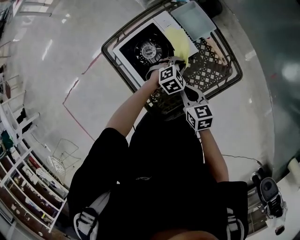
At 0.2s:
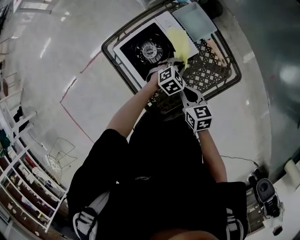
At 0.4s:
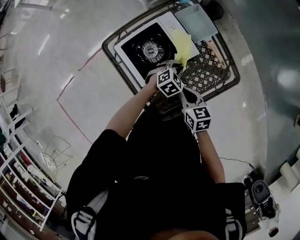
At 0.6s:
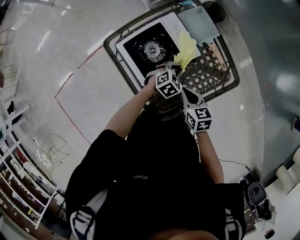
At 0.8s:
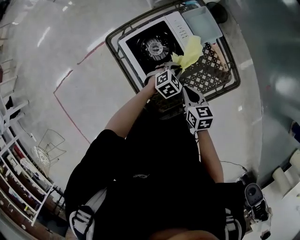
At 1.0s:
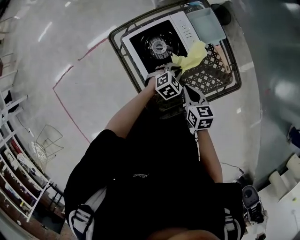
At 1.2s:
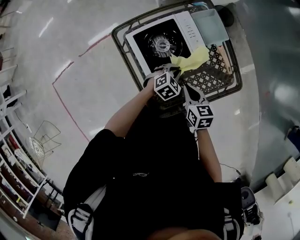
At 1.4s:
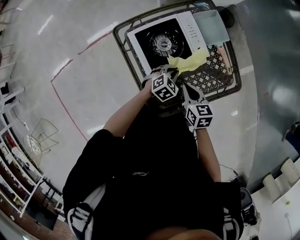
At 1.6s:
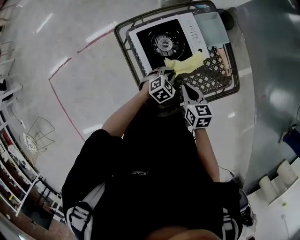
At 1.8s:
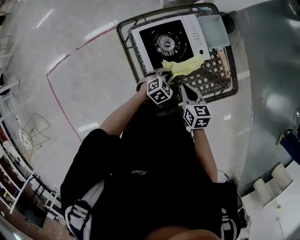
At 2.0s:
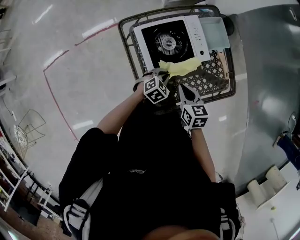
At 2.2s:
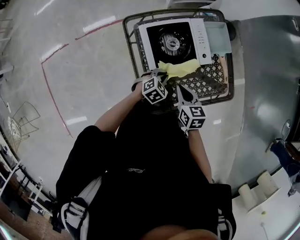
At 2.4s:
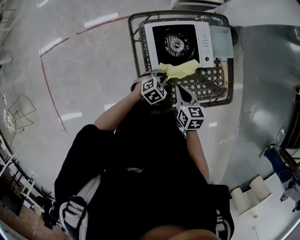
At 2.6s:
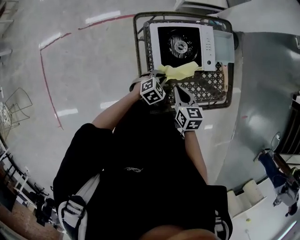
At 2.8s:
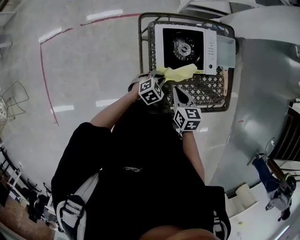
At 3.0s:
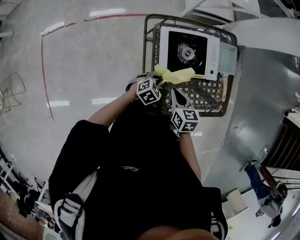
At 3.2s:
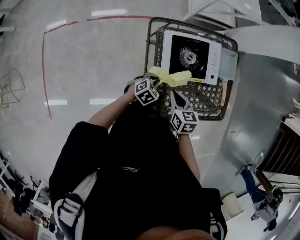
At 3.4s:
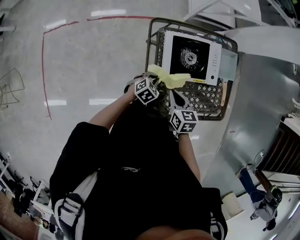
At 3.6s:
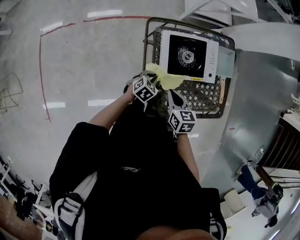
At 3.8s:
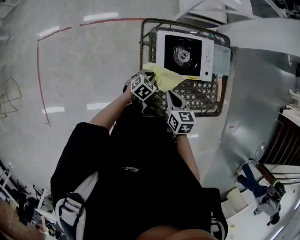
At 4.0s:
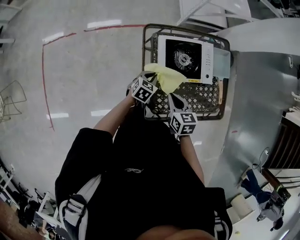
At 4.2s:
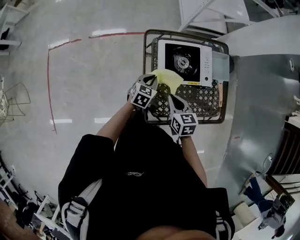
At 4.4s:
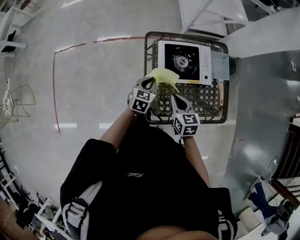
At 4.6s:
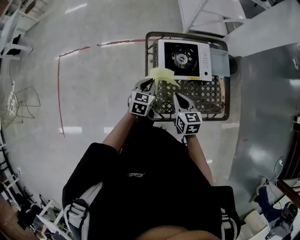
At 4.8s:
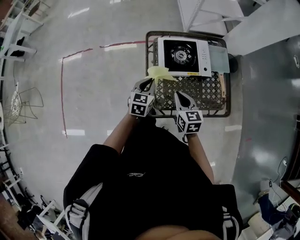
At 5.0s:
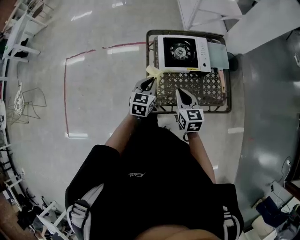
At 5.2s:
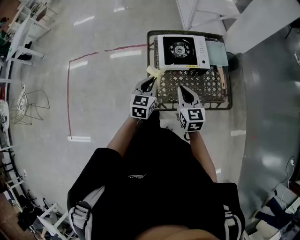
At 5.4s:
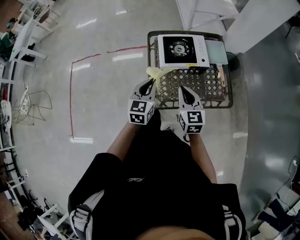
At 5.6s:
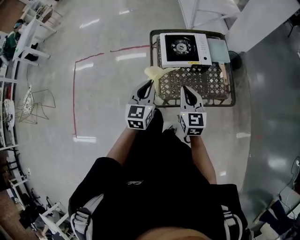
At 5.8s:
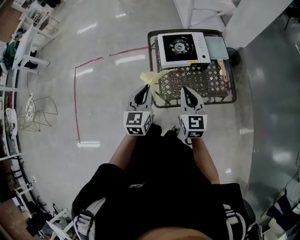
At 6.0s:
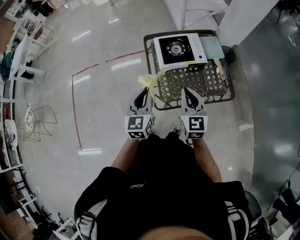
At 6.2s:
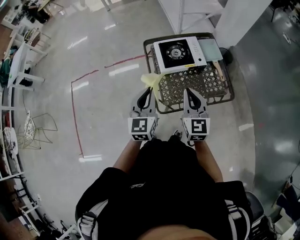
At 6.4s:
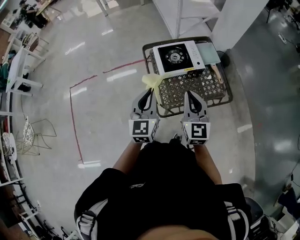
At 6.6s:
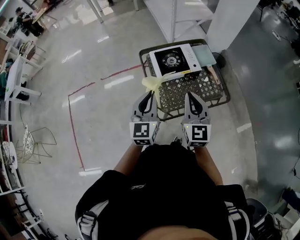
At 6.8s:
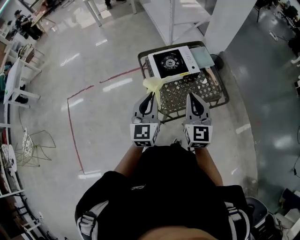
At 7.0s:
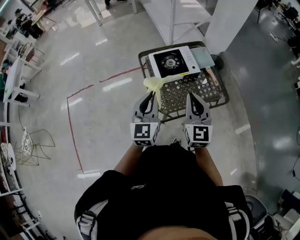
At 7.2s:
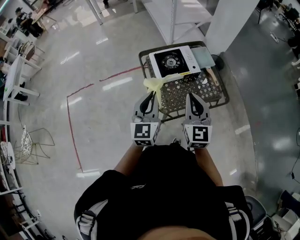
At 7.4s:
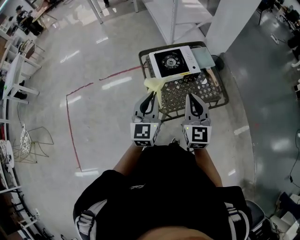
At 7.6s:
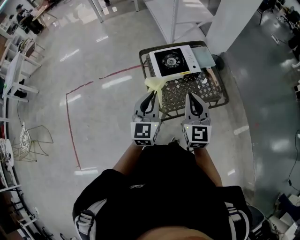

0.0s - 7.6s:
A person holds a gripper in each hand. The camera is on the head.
0.0s - 1.6s: The left gripper goes approximately 10 cm to the left and backward.
1.6s - 3.0s: The right gripper shifts roughly 10 cm to the left. The left gripper is displaced to the left and backward by about 10 cm.
3.0s - 4.6s: The left gripper heads upward and to the left, covering some 15 cm, and turns by approximately 40 degrees; the right gripper travels upward by some 5 cm.
4.6s - 6.0s: Both grippers travel together upward and backward, some 20 cm. The left gripper turns by about 20 degrees, while the right gripper turns by approximately 30 degrees.
6.0s - 7.6s: Both grippers travel together upward, about 10 cm.

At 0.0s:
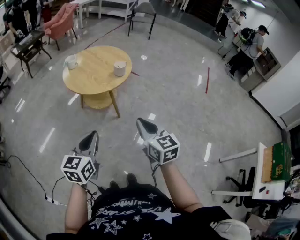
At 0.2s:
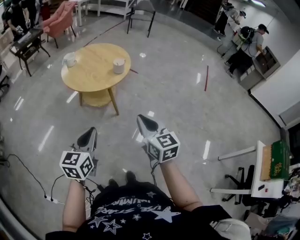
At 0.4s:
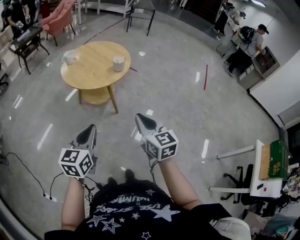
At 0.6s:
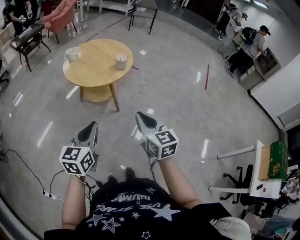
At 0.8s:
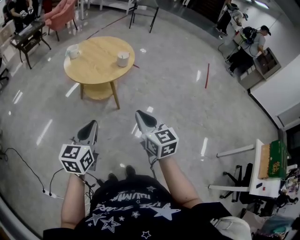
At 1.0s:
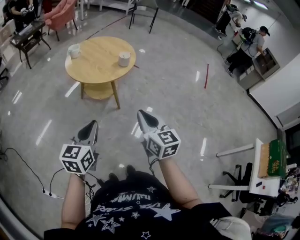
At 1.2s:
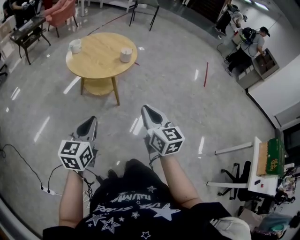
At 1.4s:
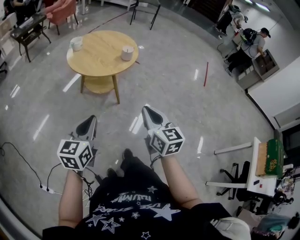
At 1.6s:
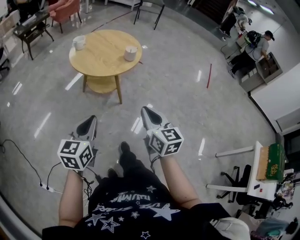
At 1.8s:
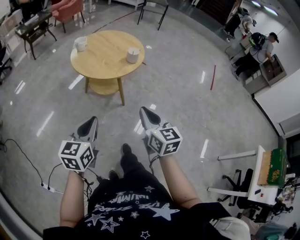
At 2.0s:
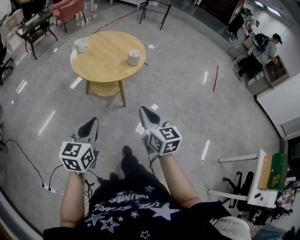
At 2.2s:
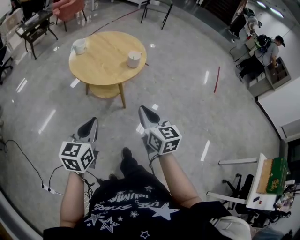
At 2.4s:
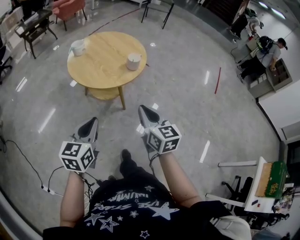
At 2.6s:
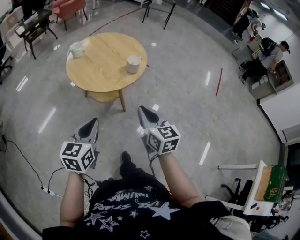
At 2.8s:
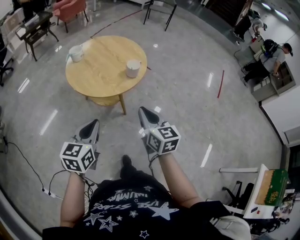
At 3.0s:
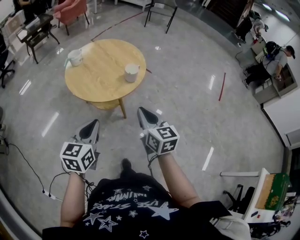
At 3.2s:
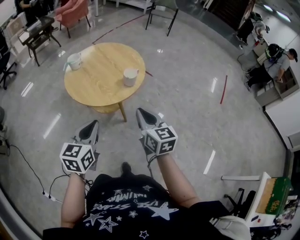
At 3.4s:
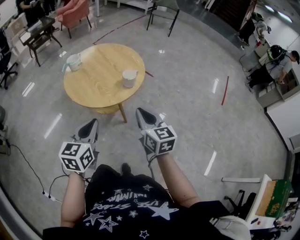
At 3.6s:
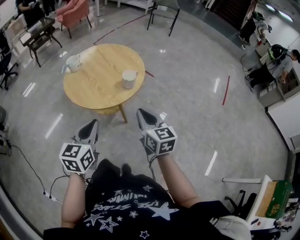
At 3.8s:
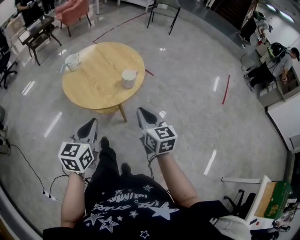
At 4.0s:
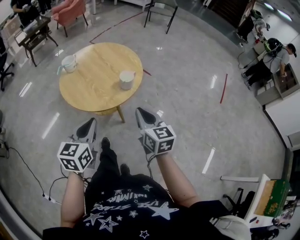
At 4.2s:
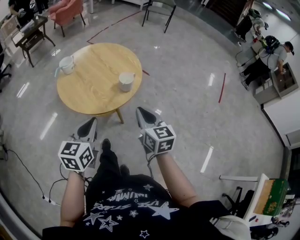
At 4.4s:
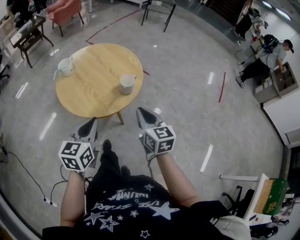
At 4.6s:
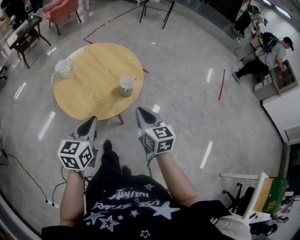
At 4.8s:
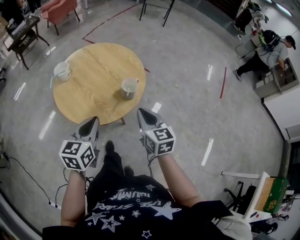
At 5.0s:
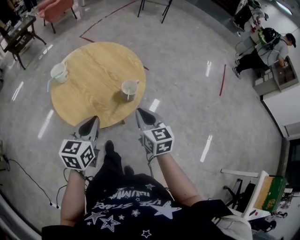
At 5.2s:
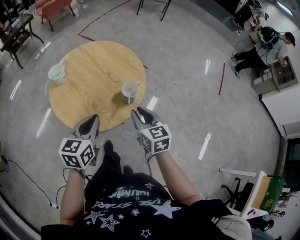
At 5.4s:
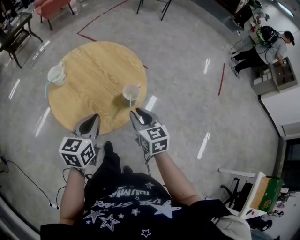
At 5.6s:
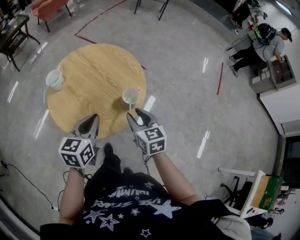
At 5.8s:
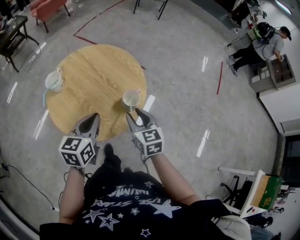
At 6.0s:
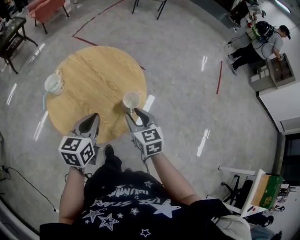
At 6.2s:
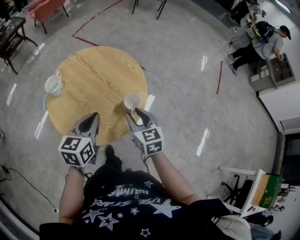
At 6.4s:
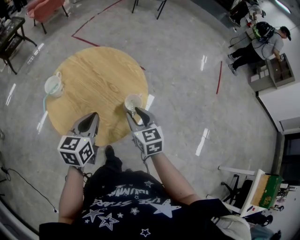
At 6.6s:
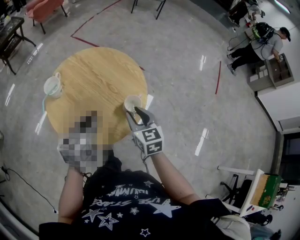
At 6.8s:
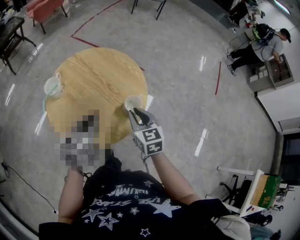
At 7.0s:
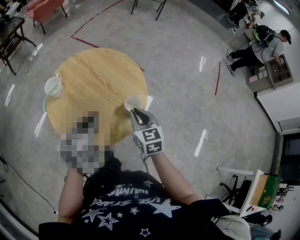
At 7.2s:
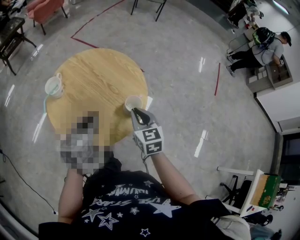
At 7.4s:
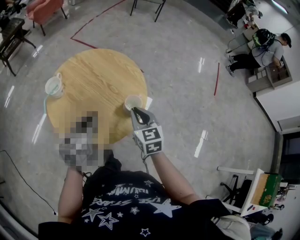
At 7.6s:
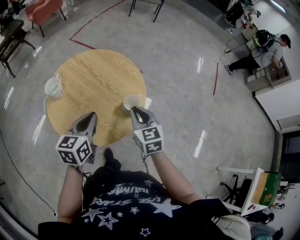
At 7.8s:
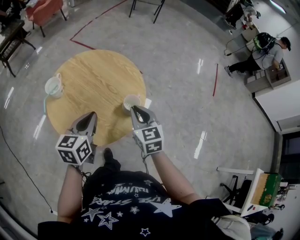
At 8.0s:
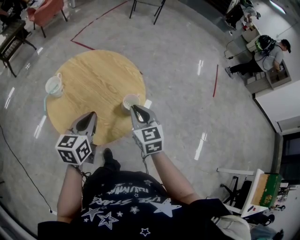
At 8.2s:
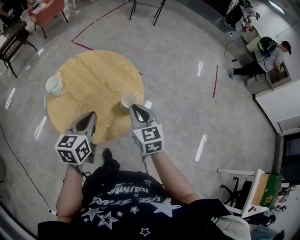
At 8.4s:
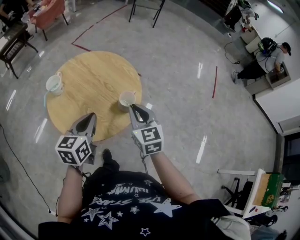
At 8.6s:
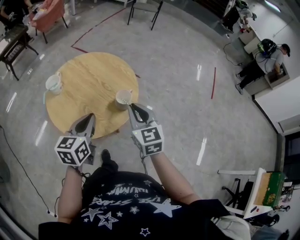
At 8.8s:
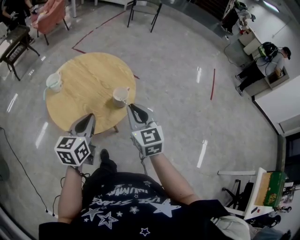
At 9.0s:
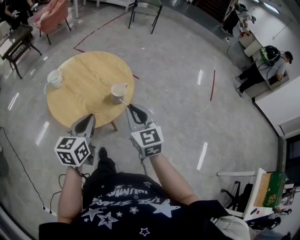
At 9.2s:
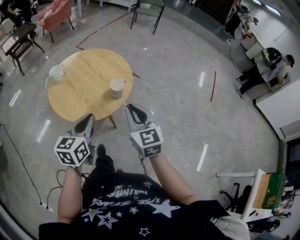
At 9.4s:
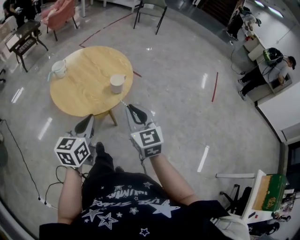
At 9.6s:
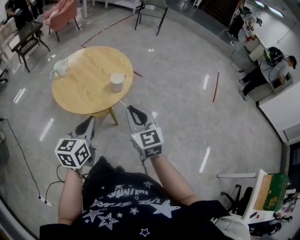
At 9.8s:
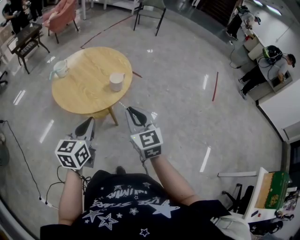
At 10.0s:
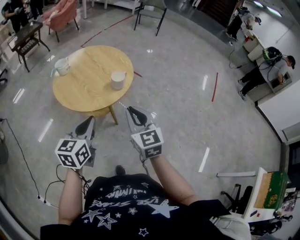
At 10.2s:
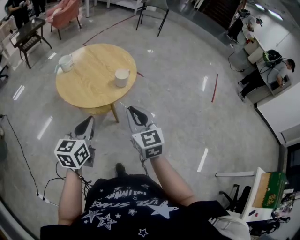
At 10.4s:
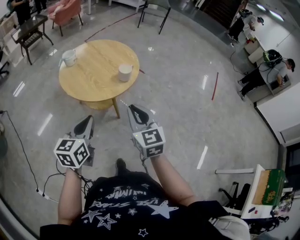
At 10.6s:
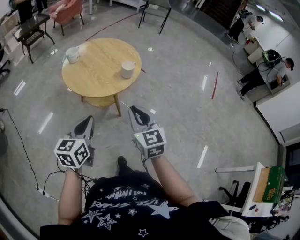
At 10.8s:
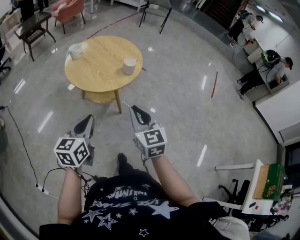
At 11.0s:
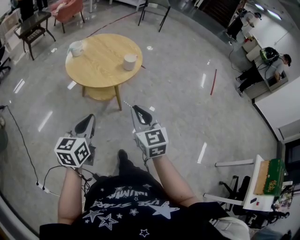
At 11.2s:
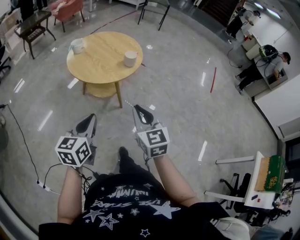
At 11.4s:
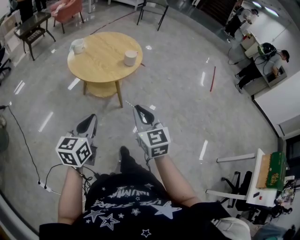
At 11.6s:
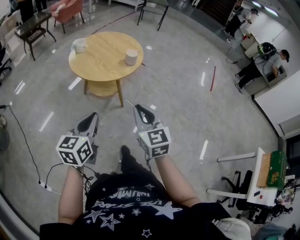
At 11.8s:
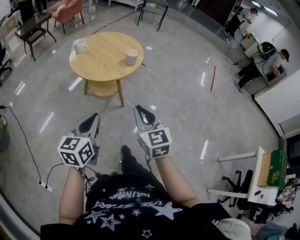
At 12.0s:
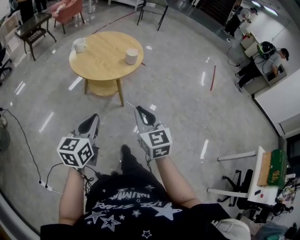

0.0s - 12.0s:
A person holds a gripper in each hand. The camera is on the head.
0.0s - 1.6s: The right gripper ends up approximately 5 cm from where it was. The left gripper travels to the left by some 5 cm.
1.6s - 3.0s: The two grippers go some 20 cm forward.
3.0s - 4.4s: The grippers both shift forward by about 10 cm.
4.4s - 6.0s: The left gripper travels forward by roughly 20 cm. Meanwhile the right gripper shifts approximately 20 cm forward, downward and to the left, and opens its fingers.
6.0s - 7.6s: The right gripper closes.
7.6s - 9.0s: The left gripper heads backward and to the right, covering roughly 15 cm, while the right gripper is displaced backward, upward and to the right by some 15 cm.
9.0s - 10.4s: Both grippers travel together backward, approximately 15 cm.
10.4s - 12.0s: The grippers both shift backward by roughly 15 cm.

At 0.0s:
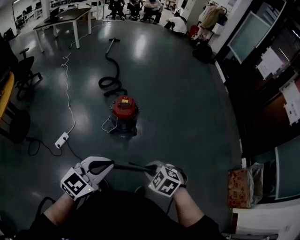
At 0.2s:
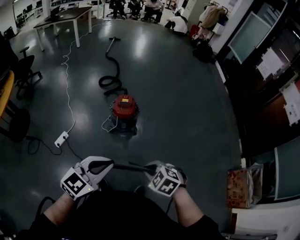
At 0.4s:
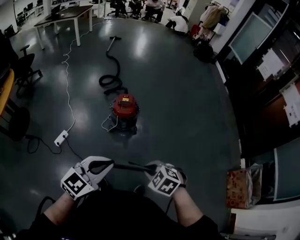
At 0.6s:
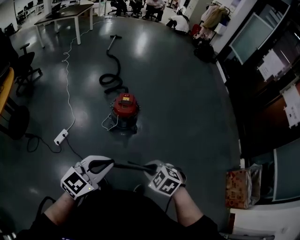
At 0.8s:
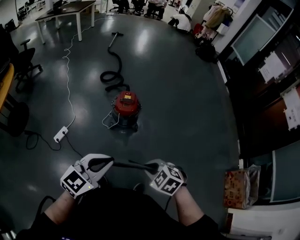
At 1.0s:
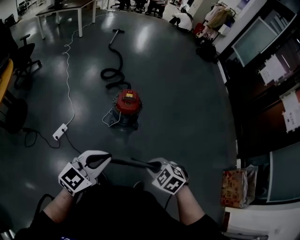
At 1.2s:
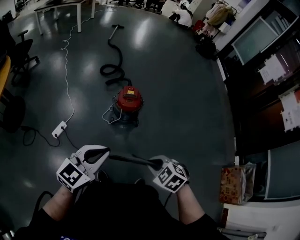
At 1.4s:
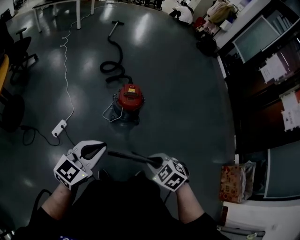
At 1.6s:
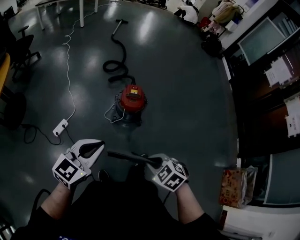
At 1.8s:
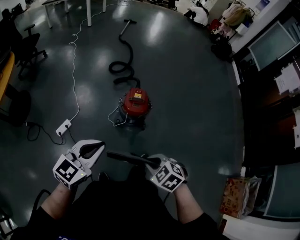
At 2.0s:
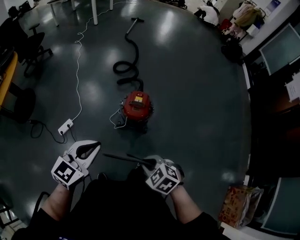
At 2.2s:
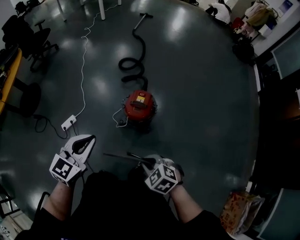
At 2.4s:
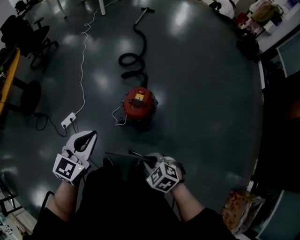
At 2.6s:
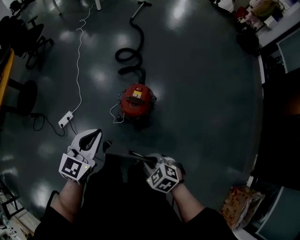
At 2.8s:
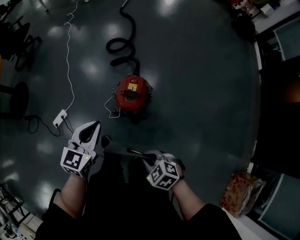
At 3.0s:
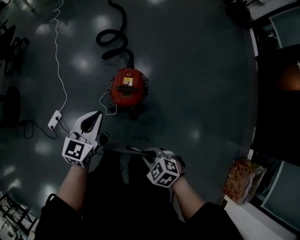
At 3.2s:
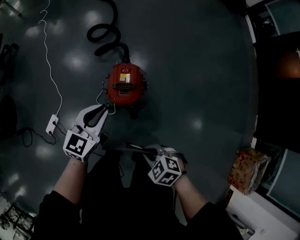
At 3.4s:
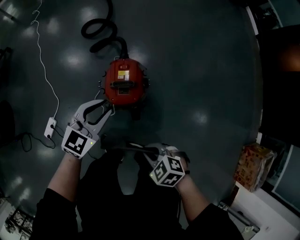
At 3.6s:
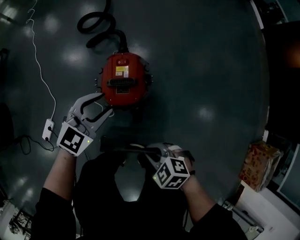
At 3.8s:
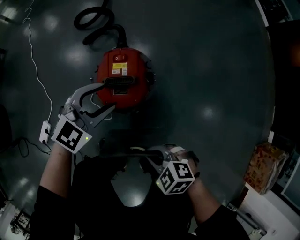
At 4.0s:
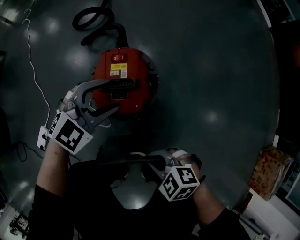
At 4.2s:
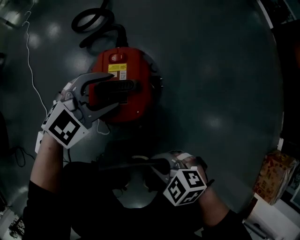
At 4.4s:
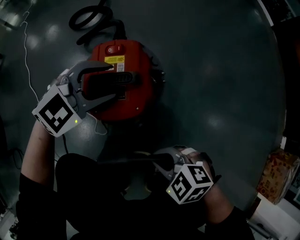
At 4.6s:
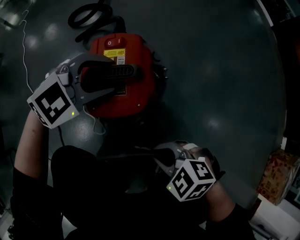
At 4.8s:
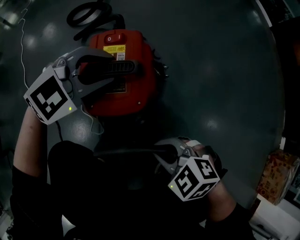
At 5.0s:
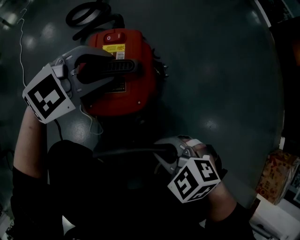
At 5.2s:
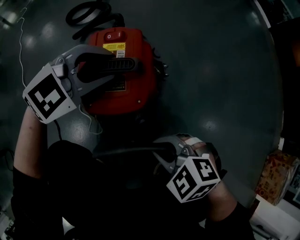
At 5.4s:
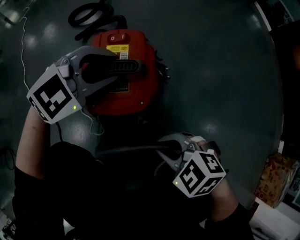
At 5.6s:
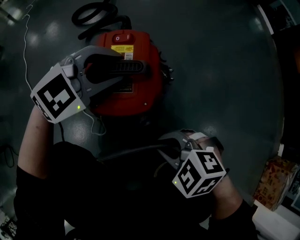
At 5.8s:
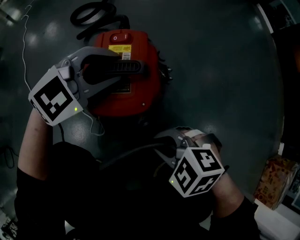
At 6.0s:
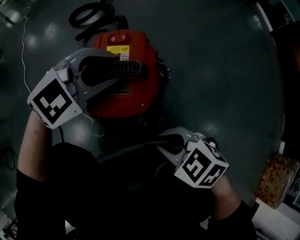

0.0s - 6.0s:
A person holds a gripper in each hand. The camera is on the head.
0.0s - 1.6s: The left gripper shifts roughly 20 cm to the left and forward. Meanwhile the right gripper shifts approximately 10 cm forward and to the left.
1.6s - 3.0s: The left gripper goes about 40 cm forward, to the right and downward, and swivels approximately 20 degrees; the right gripper heads downward, forward and to the right, covering about 25 cm.
3.0s - 4.4s: The two grippers go approximately 30 cm downward. The left gripper rotates roughly 60 degrees, and opens its fingers.
4.4s - 6.0s: The left gripper closes its fingers. The right gripper shifts by some 5 cm.
